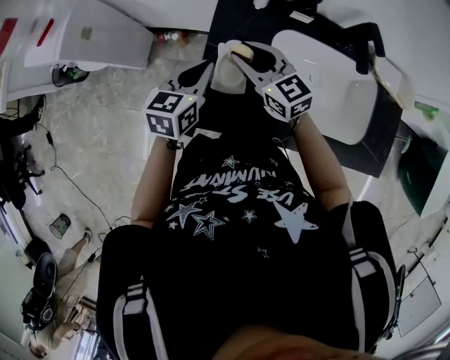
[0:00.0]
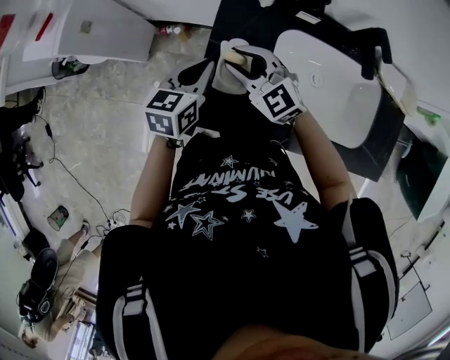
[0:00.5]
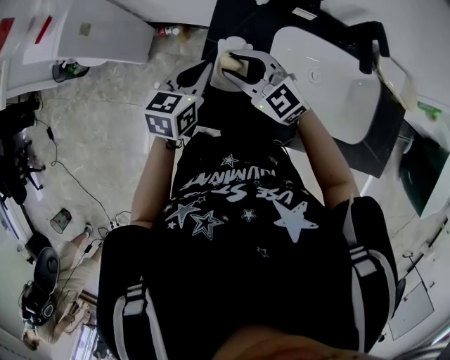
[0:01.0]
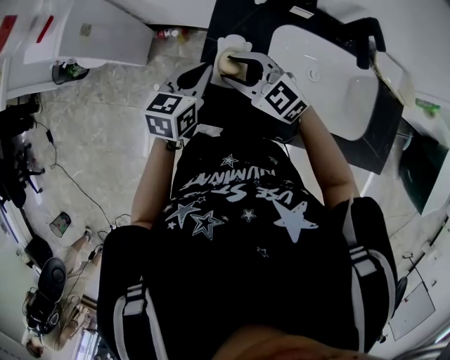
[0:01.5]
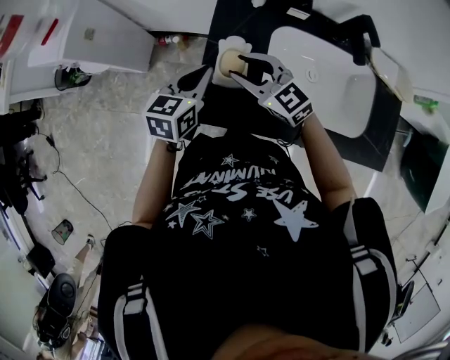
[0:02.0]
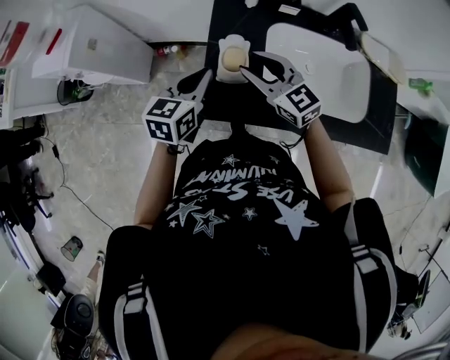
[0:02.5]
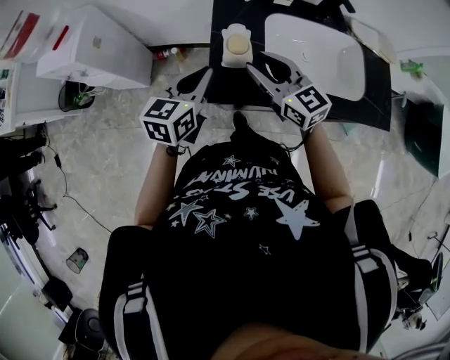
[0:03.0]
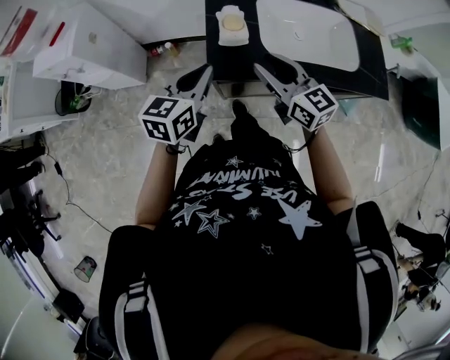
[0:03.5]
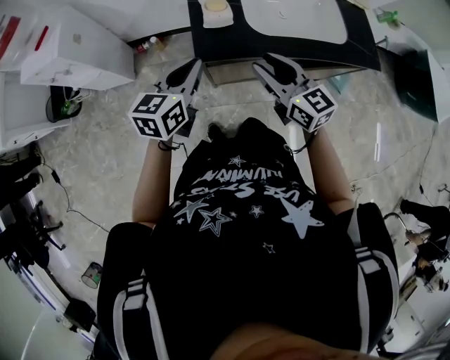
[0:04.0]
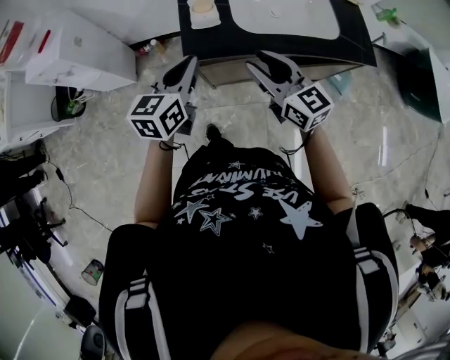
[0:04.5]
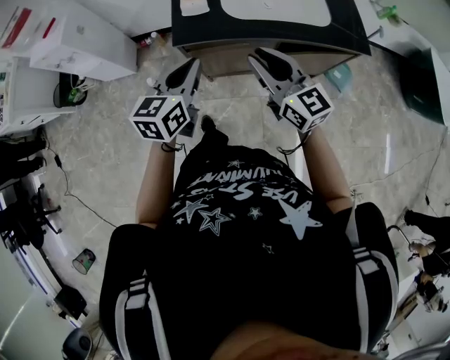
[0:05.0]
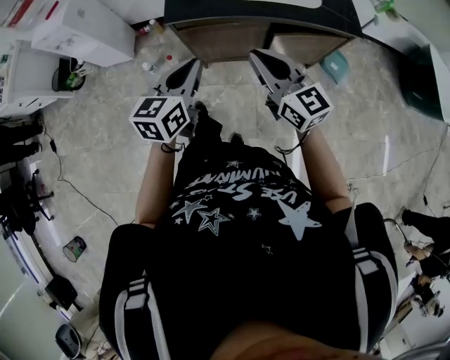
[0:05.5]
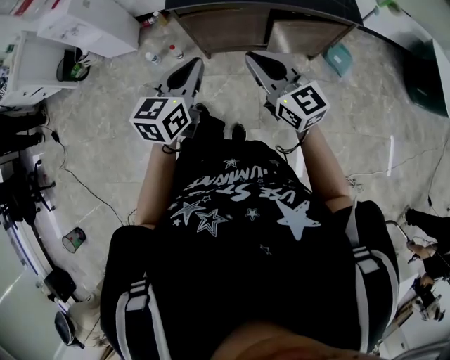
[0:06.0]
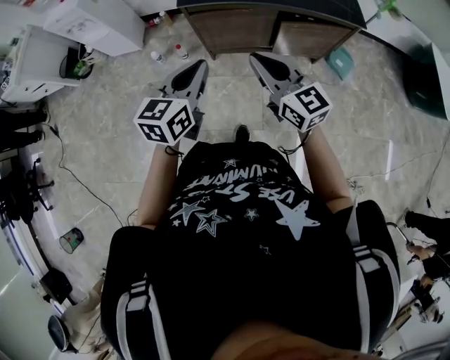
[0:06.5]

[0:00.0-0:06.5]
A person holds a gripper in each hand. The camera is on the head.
0:00.0 to 0:02.0: The right gripper travels backward by some 5 cm.
0:02.0 to 0:04.5: Both grippers move backward, some 25 cm. The right gripper turns by approximately 40 degrees.
0:04.5 to 0:06.5: The grippers both shift backward by some 25 cm. The right gripper closes up.

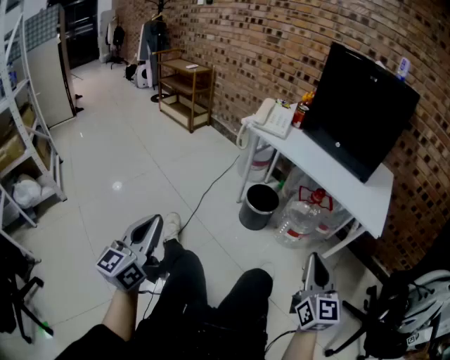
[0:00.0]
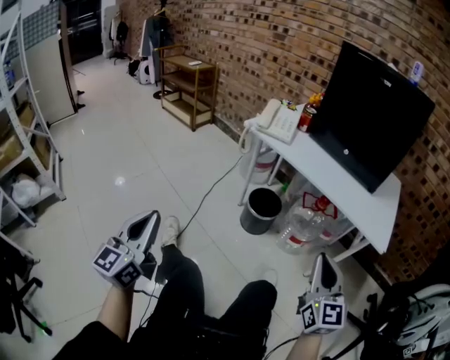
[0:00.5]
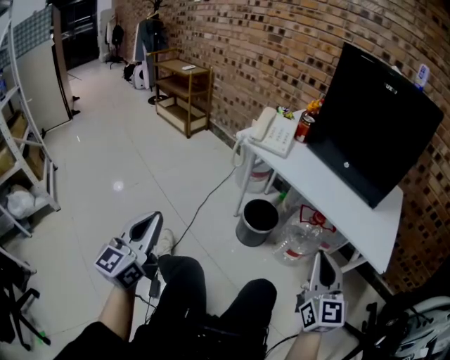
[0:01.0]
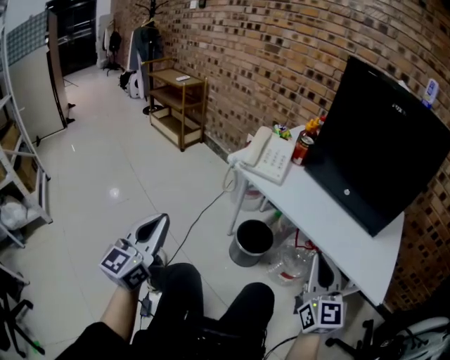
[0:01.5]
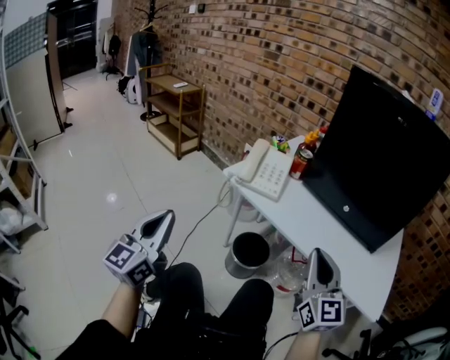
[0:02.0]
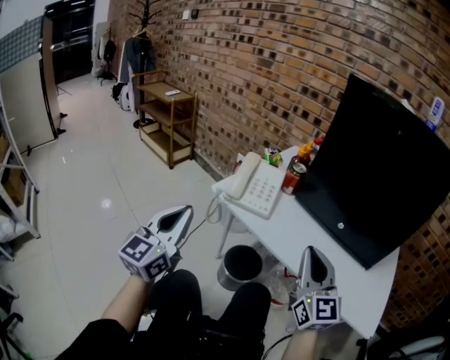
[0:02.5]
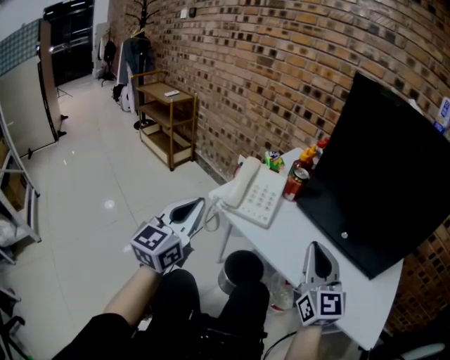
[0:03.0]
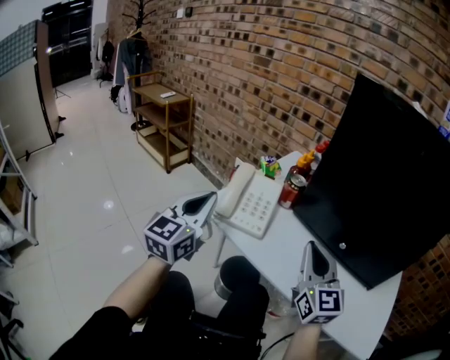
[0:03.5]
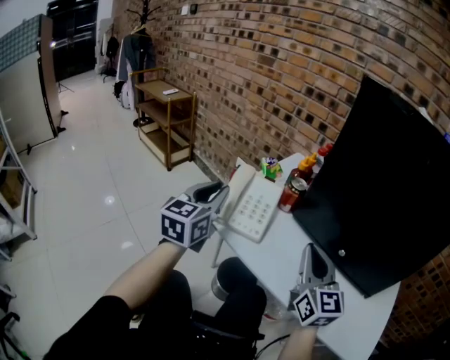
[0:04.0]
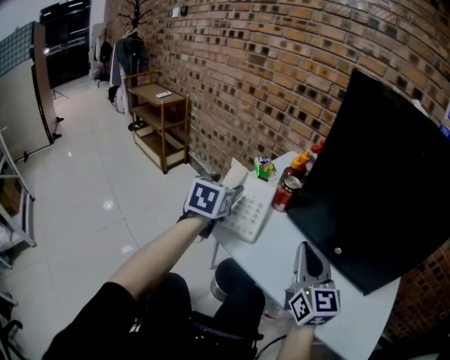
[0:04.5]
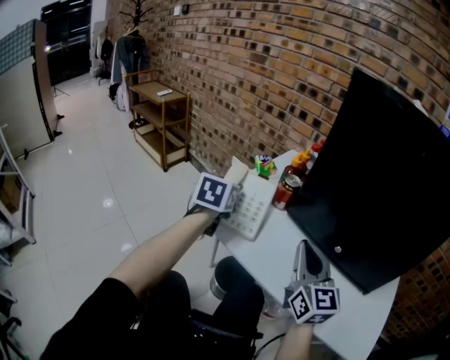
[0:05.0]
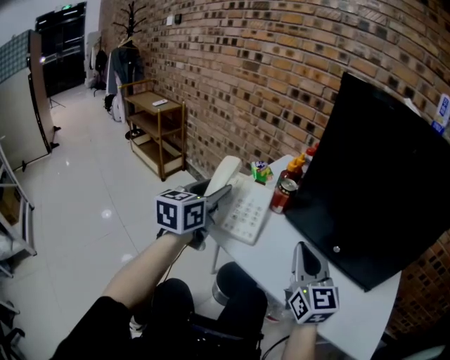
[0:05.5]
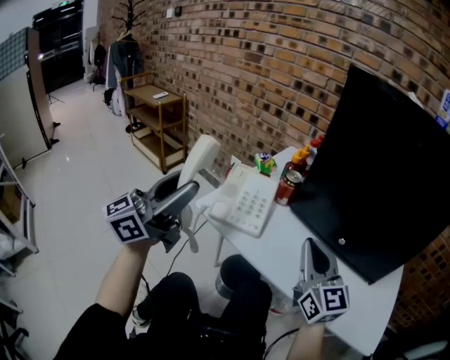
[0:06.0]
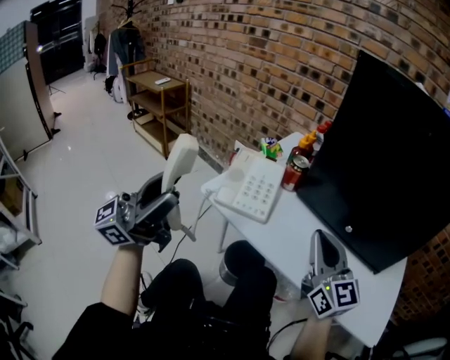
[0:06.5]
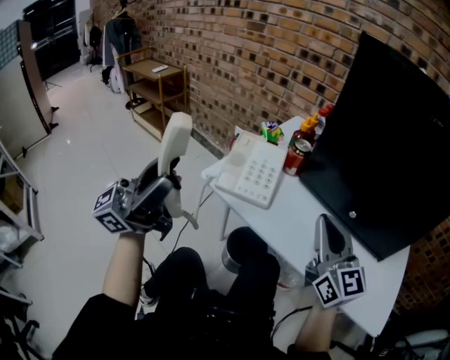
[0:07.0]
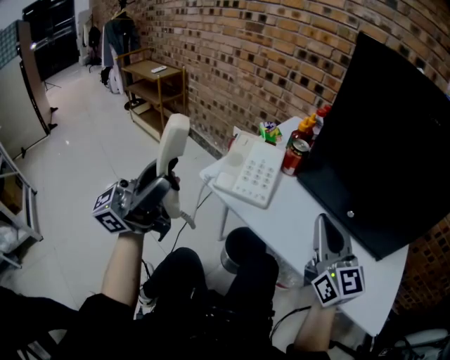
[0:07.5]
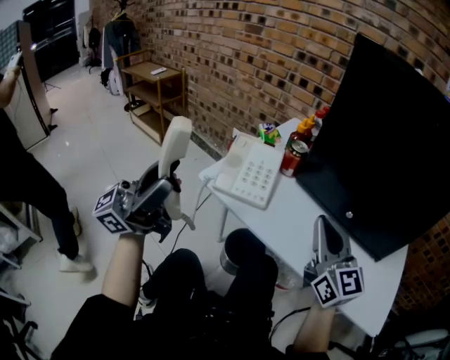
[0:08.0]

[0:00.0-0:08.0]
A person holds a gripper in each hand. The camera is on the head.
0:00.0 to 0:02.0: The two grippers go some 30 cm forward.
0:02.0 to 0:04.0: The left gripper shifts about 30 cm forward and to the right. The right gripper shifts about 20 cm forward.
0:04.0 to 0:06.0: The left gripper moves backward and upward, approximately 15 cm, angles its fingers upward, by some 30 degrees, and opens.
0:06.0 to 0:08.0: The left gripper travels backward by some 5 cm.

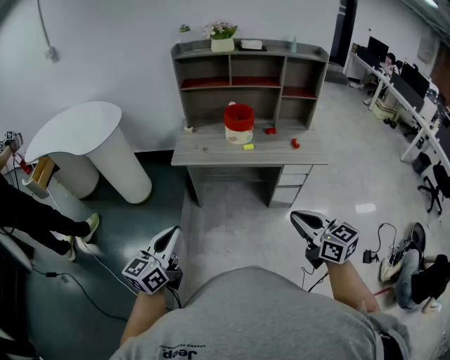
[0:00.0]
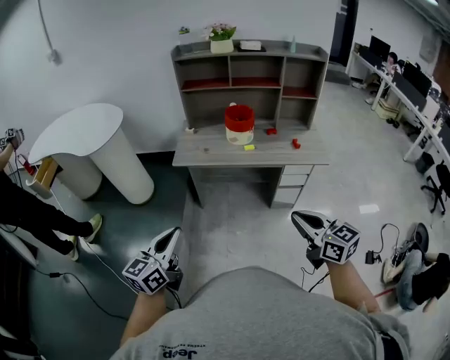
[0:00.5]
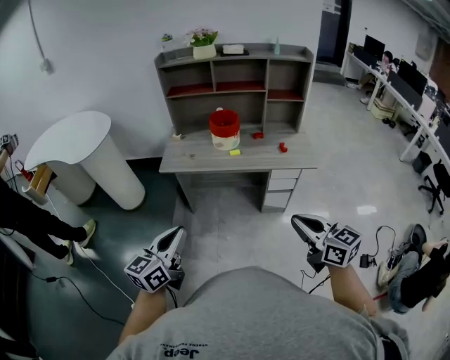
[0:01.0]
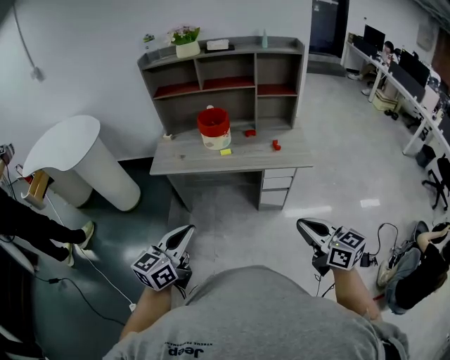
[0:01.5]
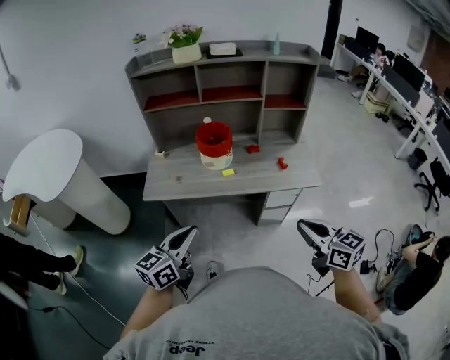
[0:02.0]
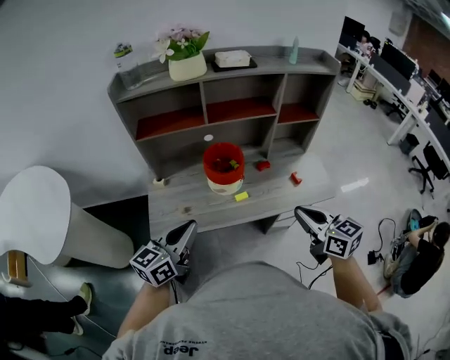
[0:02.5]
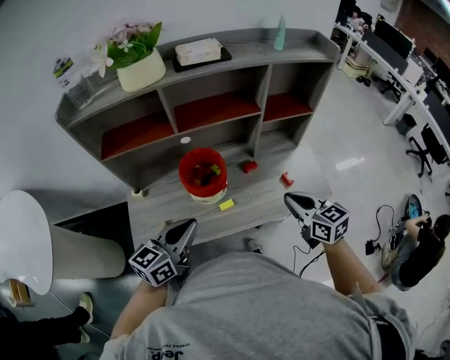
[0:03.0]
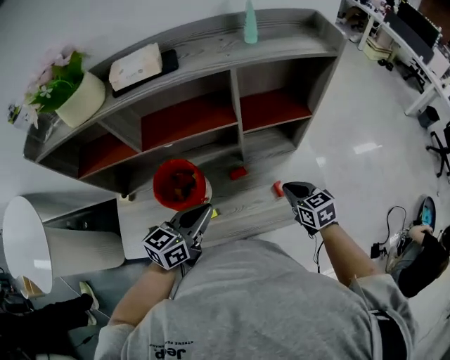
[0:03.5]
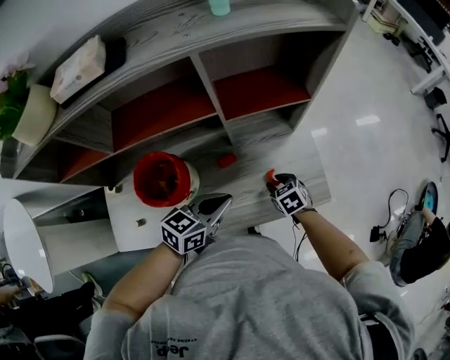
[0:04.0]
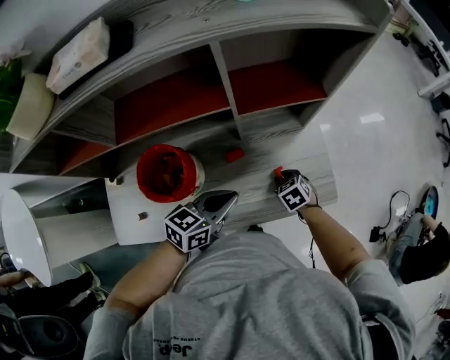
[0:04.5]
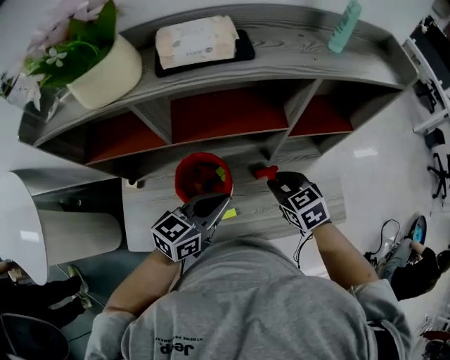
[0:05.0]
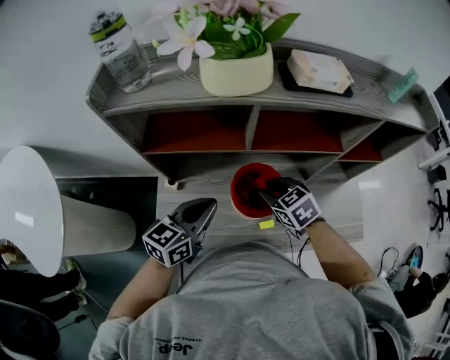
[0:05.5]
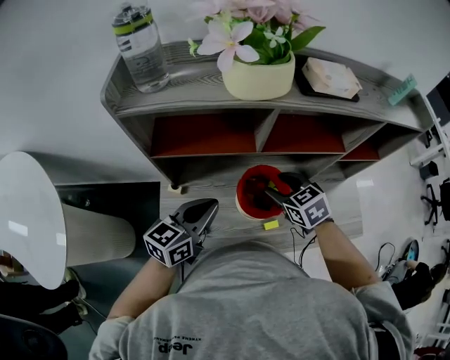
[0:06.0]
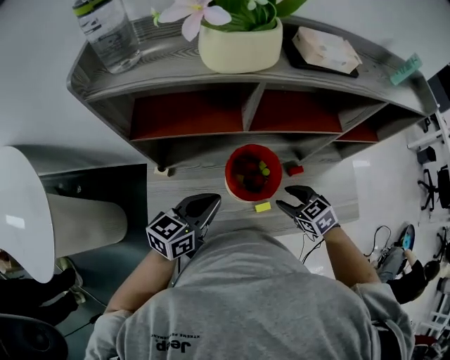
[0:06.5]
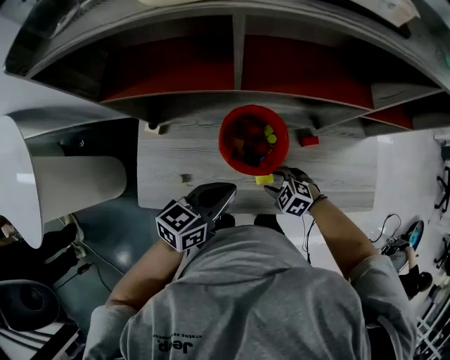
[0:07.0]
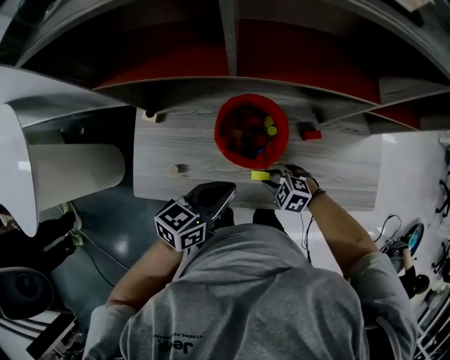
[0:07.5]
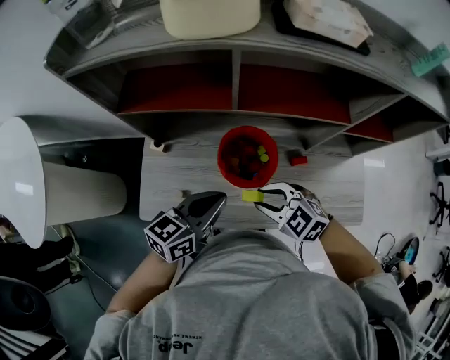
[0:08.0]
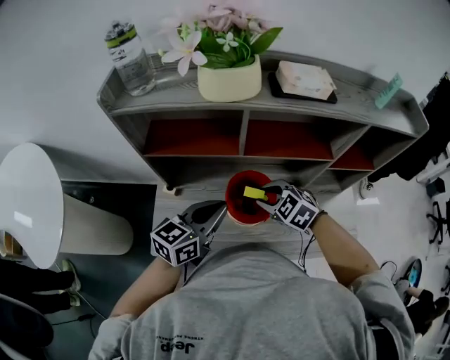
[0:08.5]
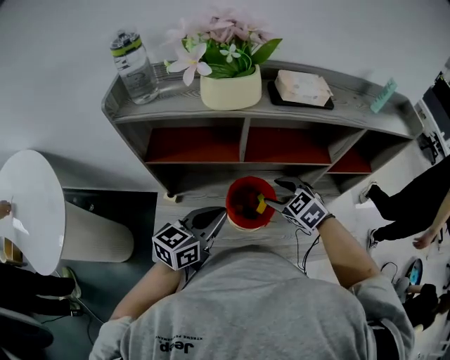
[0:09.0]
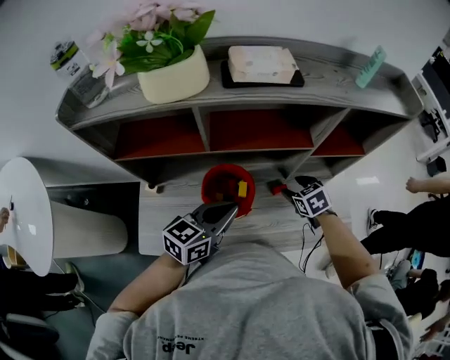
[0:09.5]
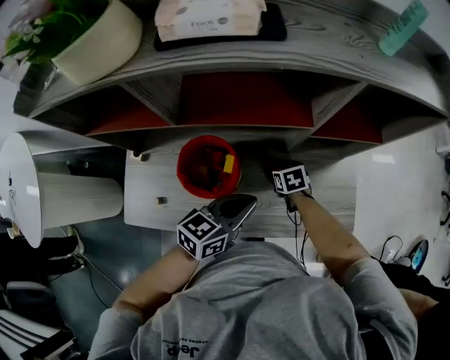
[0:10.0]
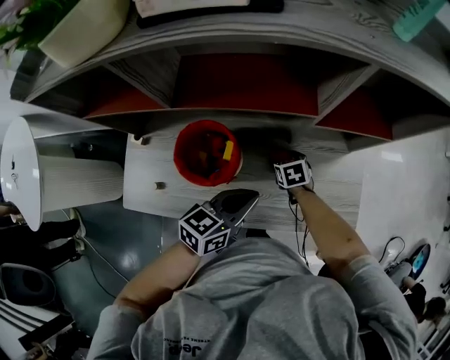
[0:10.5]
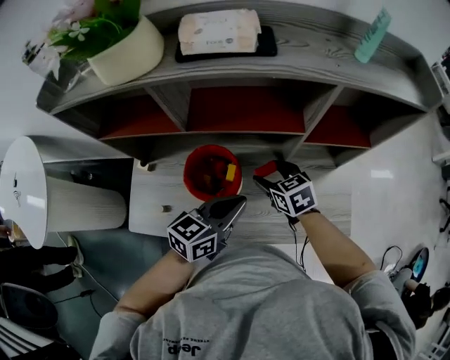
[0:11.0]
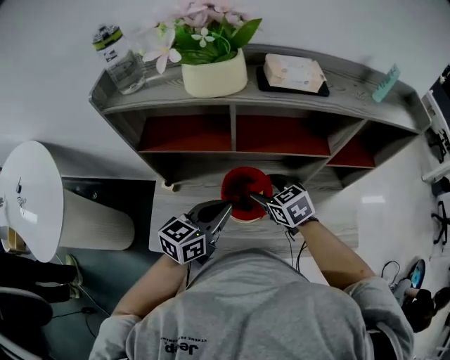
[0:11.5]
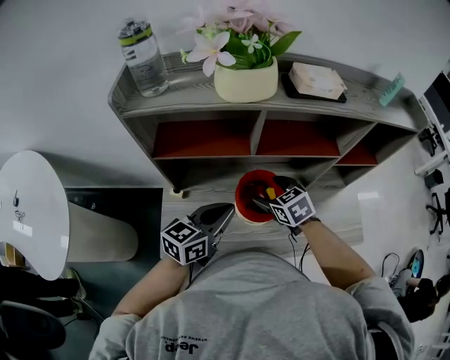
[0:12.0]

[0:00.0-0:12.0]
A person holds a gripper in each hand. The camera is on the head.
0:00.0 to 0:02.0: The grippers both shift forward and to the right by approximately 25 cm.
0:02.0 to 0:04.0: Both grippers are carried forward, some 50 cm. The left gripper rotates about 30 degrees. Meanwhile the right gripper goes approximately 35 cm downward, tips its fingers downward by approximately 40 degrees, and opens.
0:04.0 to 0:06.0: The left gripper moves to the left, approximately 40 cm, and swivels some 20 degrees, while the right gripper travels to the left and upward by about 40 cm.
0:06.0 to 0:08.0: The right gripper goes downward and returns, some 30 cm each way, and turns by some 40 degrees.
0:08.0 to 0:10.0: The right gripper heads to the right, downward and forward, covering approximately 30 cm, rotates around the line of its fingers by about 50 degrees, clockwise from behind, and opens its fingers; the left gripper goes some 20 cm to the right.
0:10.0 to 0:12.0: The right gripper travels upward and to the left by approximately 30 cm, and rotates roughly 30 degrees; the left gripper heads to the left, covering approximately 25 cm.
